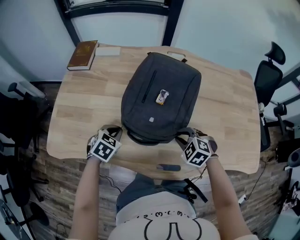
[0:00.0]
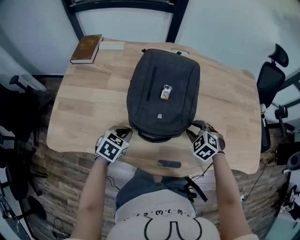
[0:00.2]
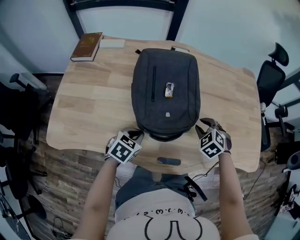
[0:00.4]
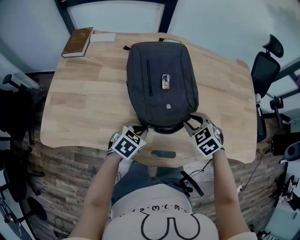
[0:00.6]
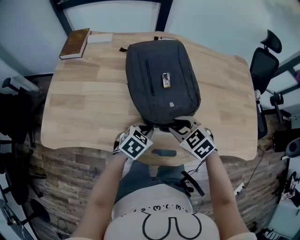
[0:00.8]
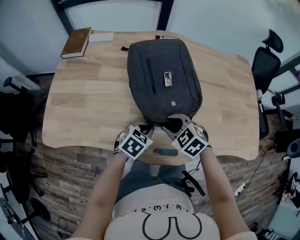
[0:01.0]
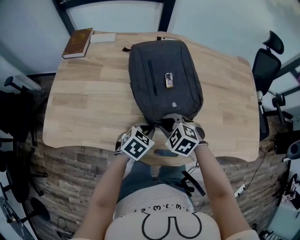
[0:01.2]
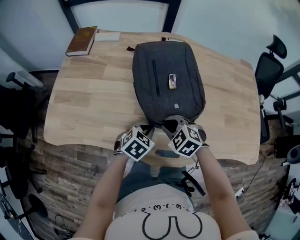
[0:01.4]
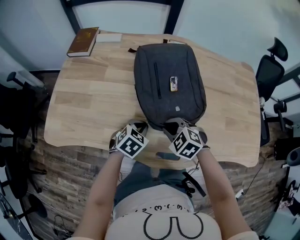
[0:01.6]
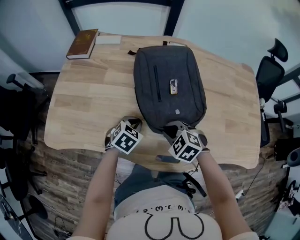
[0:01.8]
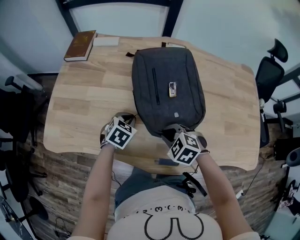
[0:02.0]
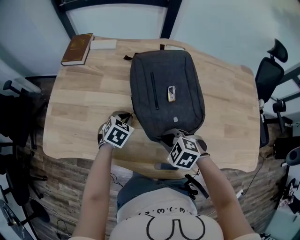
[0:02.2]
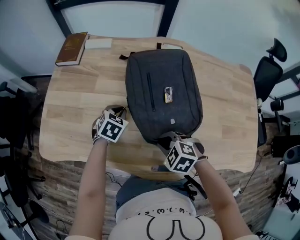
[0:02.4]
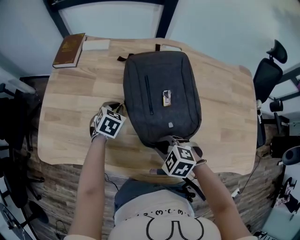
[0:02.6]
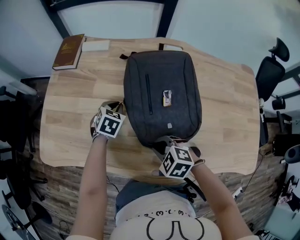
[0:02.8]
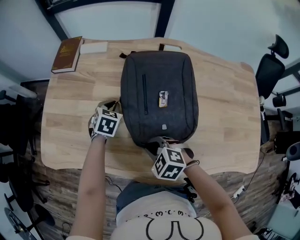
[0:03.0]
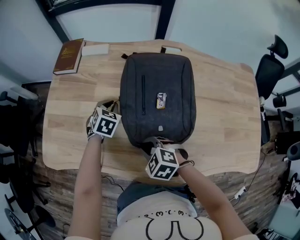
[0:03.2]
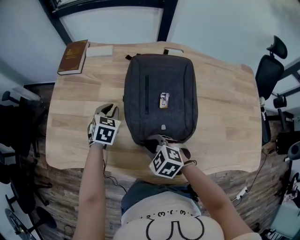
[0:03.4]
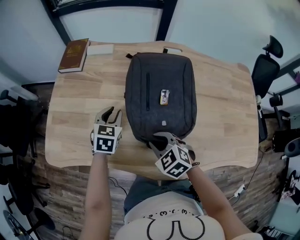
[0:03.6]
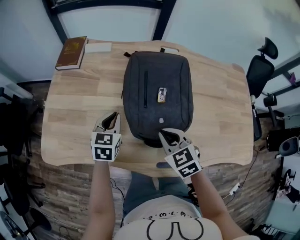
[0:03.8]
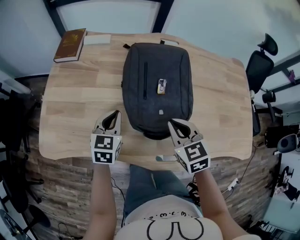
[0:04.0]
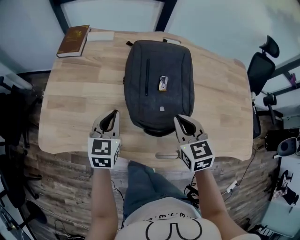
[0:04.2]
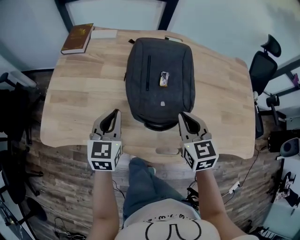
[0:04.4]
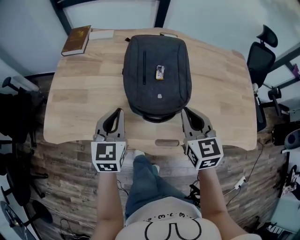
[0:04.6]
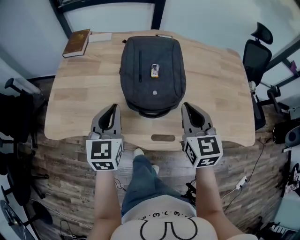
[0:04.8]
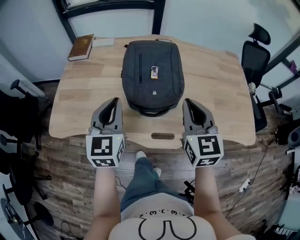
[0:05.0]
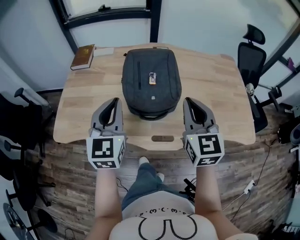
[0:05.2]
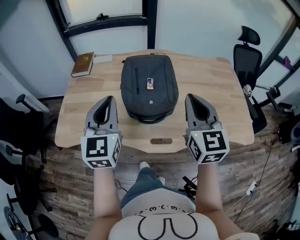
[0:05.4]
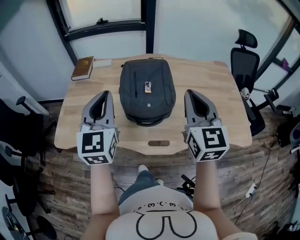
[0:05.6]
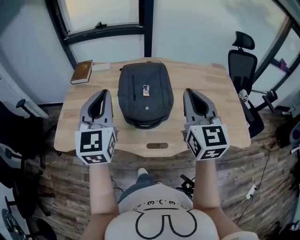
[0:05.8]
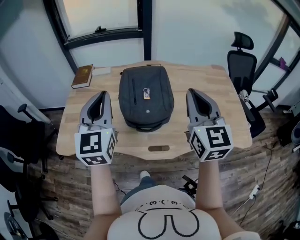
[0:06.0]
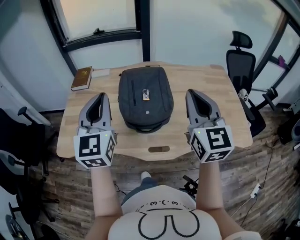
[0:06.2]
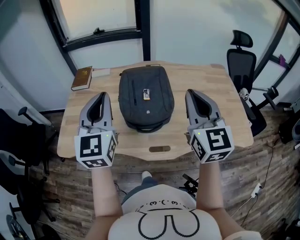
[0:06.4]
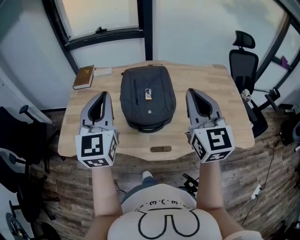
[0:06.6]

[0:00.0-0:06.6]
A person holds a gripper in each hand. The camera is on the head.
0.0 to 1.6 s: The right gripper is displaced to the left by some 5 cm, while the left gripper shifts roughly 10 cm to the right.
1.6 to 3.2 s: The left gripper heads forward, covering approximately 20 cm; the right gripper goes roughly 10 cm to the left.
3.2 to 5.0 s: The left gripper is displaced upward and backward by about 35 cm, and angles its fingers upward, by roughly 40 degrees, while the right gripper heads upward and to the right, covering roughly 30 cm, and angles its fingers upward, by some 50 degrees.
5.0 to 6.6 s: Both grippers travel together upward, some 15 cm.

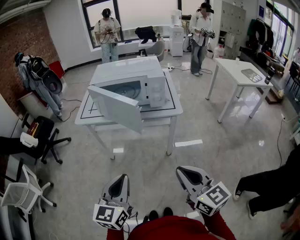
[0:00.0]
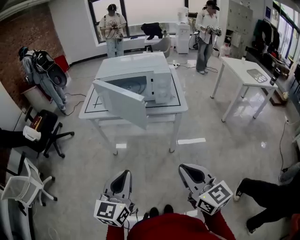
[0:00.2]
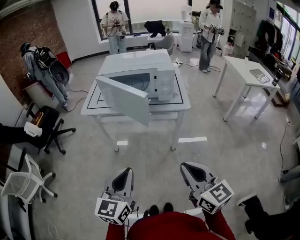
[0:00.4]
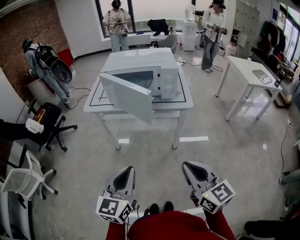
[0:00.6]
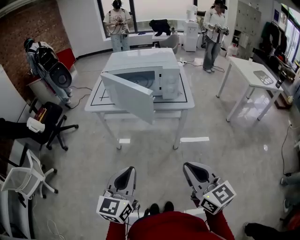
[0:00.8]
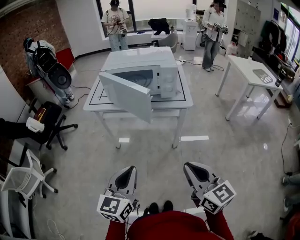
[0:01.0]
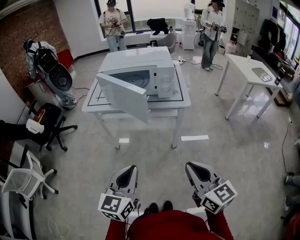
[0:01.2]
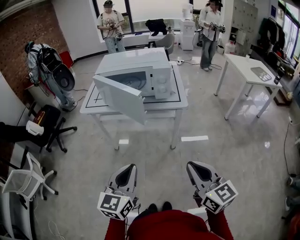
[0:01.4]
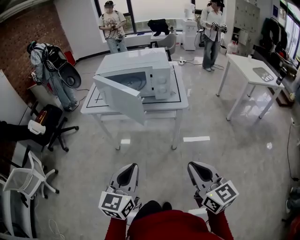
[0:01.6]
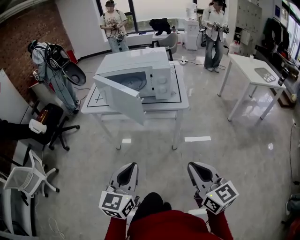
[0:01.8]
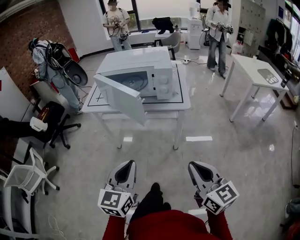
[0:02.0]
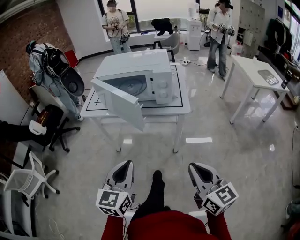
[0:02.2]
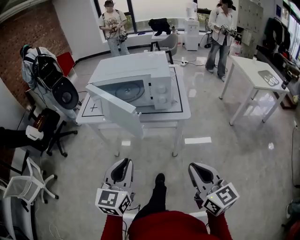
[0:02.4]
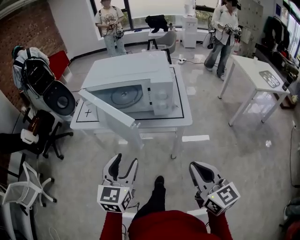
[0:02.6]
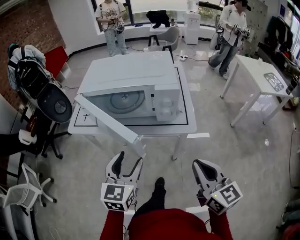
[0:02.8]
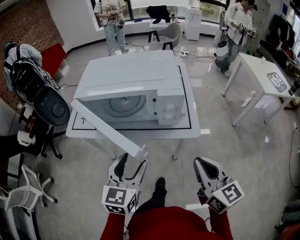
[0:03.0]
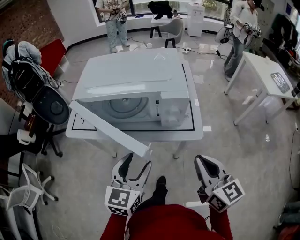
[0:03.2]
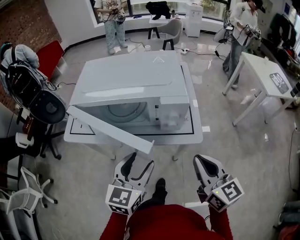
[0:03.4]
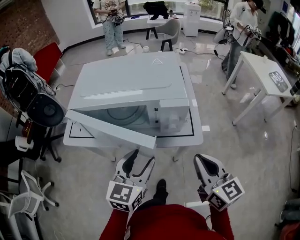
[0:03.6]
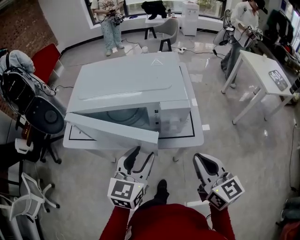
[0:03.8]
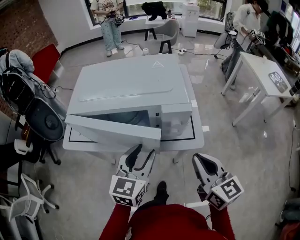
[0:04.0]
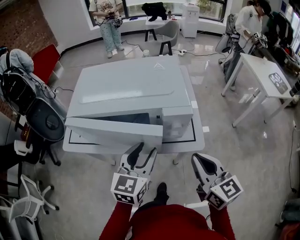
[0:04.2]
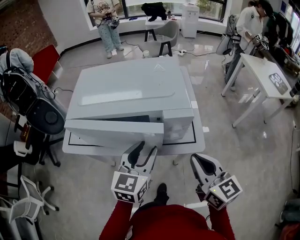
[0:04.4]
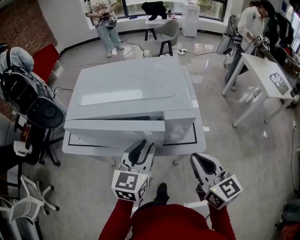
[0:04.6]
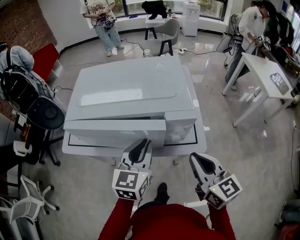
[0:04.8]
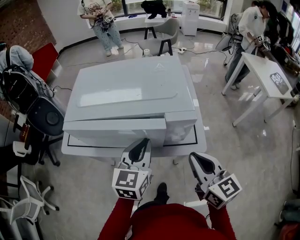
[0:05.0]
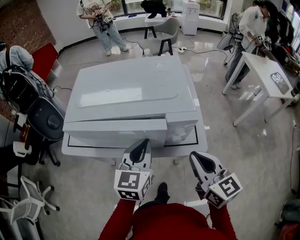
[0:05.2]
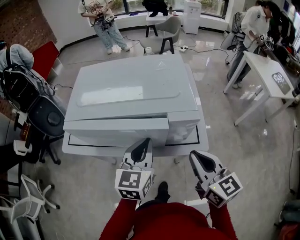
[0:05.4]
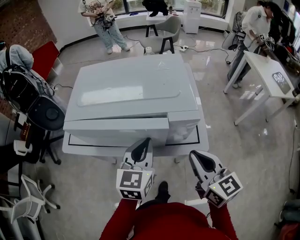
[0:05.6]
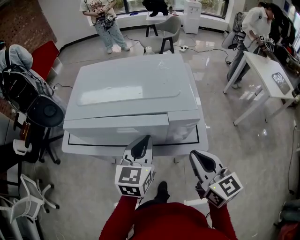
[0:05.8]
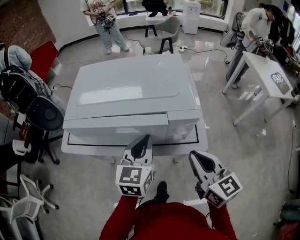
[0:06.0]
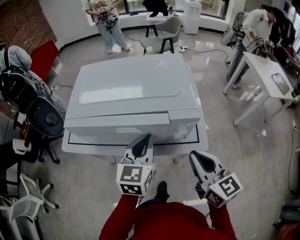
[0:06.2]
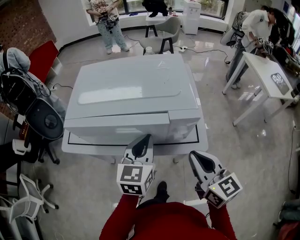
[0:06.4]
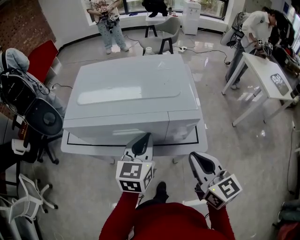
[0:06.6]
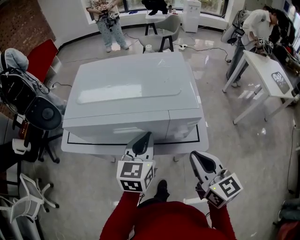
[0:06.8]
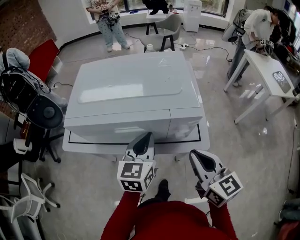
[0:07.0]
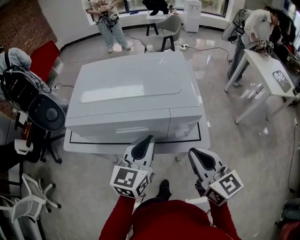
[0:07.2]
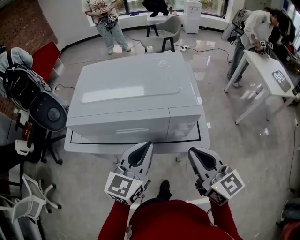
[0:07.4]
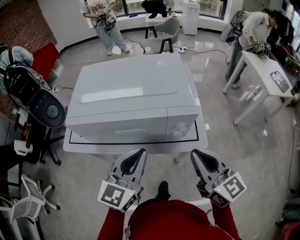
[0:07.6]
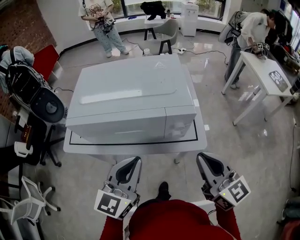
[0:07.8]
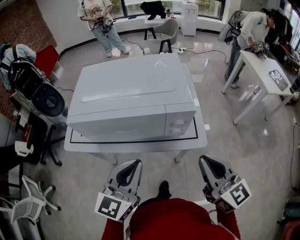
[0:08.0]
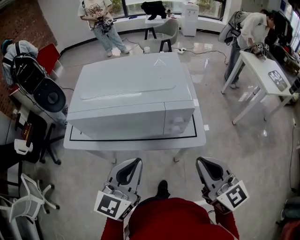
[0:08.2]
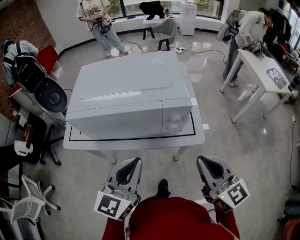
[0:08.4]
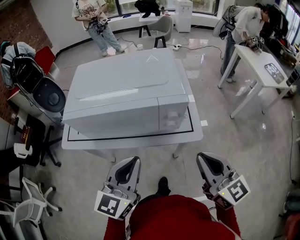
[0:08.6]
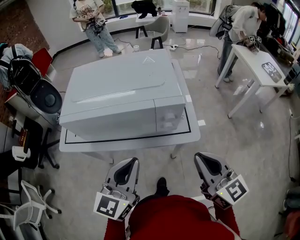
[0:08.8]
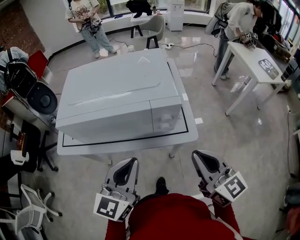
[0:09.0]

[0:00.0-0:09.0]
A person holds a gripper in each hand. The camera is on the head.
0.0 to 1.6 s: Both grippers move to the right, some 5 cm.
1.6 to 3.0 s: Both grippers travel together forward, approximately 25 cm. The left gripper opens its fingers.
3.0 to 4.4 s: Both grippers travel together forward, some 10 cm.
4.4 to 6.0 s: The left gripper closes.
6.0 to 7.6 s: The left gripper heads backward, covering roughly 5 cm.
7.6 to 9.0 s: There are only small adjustments of the grippers.

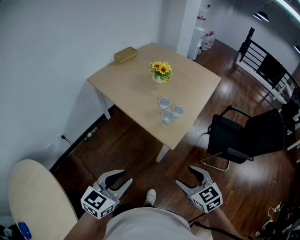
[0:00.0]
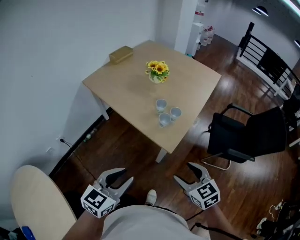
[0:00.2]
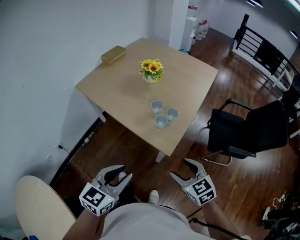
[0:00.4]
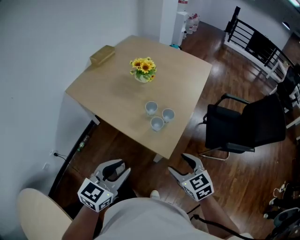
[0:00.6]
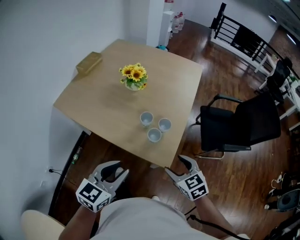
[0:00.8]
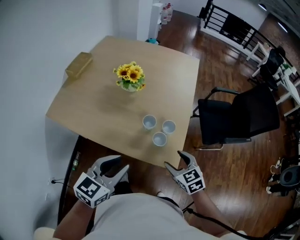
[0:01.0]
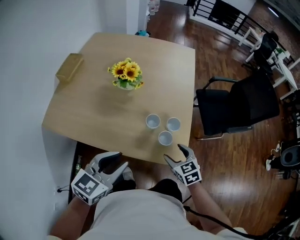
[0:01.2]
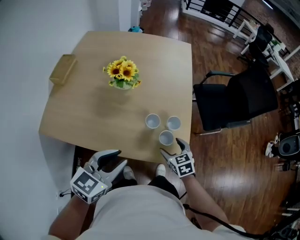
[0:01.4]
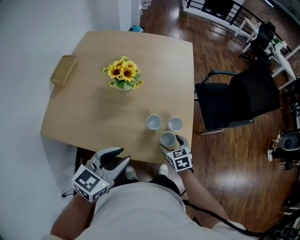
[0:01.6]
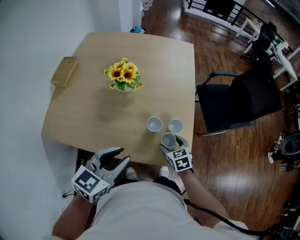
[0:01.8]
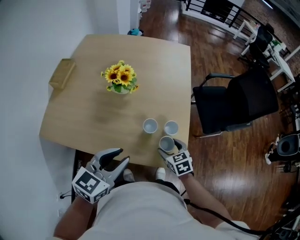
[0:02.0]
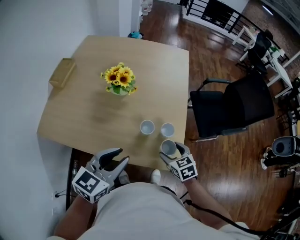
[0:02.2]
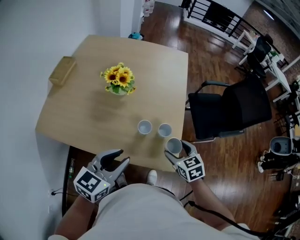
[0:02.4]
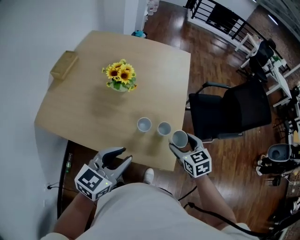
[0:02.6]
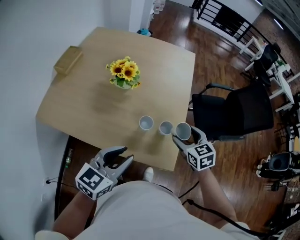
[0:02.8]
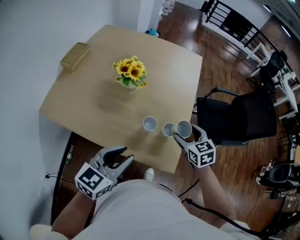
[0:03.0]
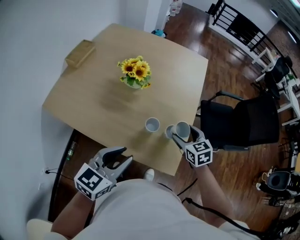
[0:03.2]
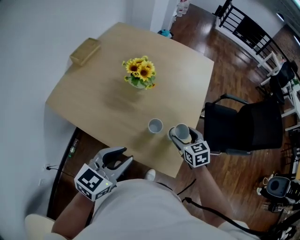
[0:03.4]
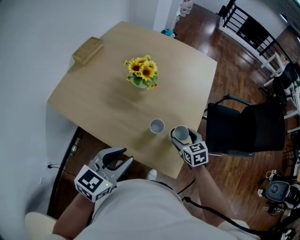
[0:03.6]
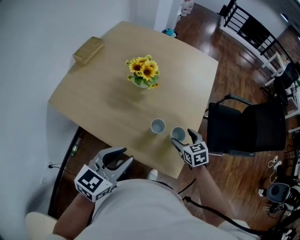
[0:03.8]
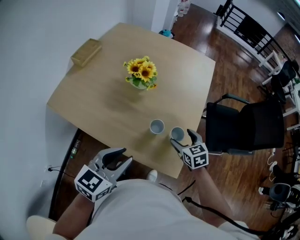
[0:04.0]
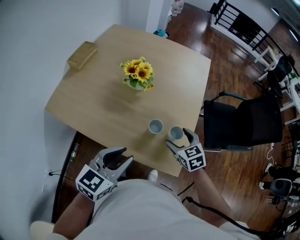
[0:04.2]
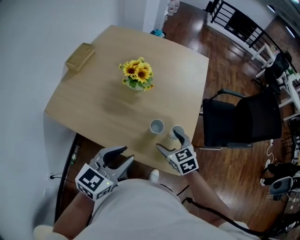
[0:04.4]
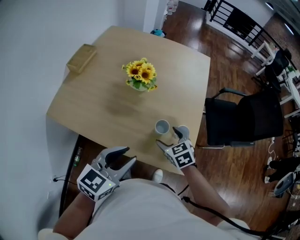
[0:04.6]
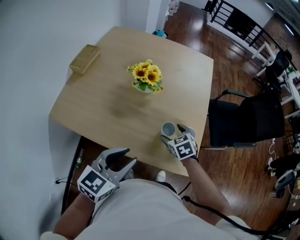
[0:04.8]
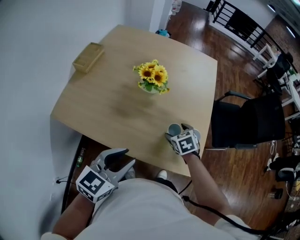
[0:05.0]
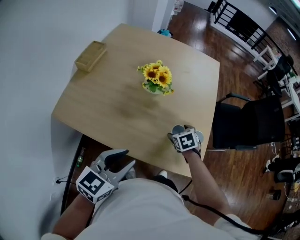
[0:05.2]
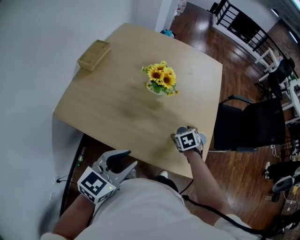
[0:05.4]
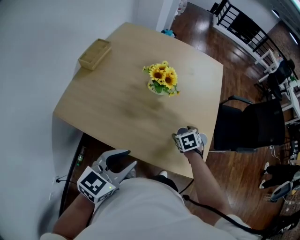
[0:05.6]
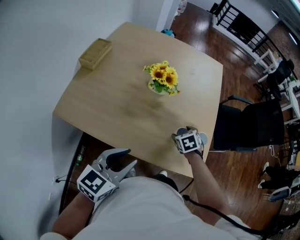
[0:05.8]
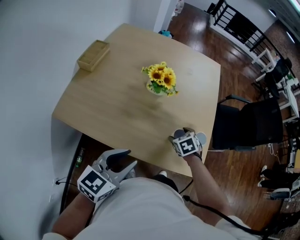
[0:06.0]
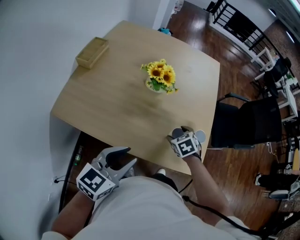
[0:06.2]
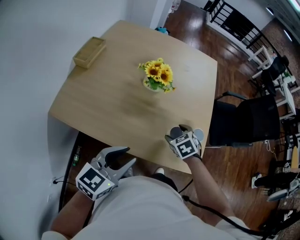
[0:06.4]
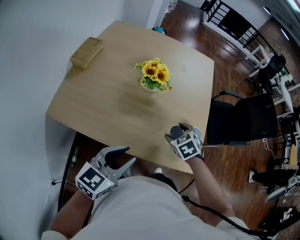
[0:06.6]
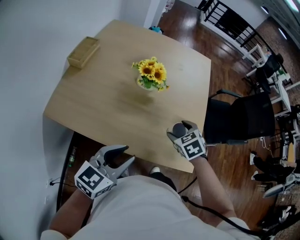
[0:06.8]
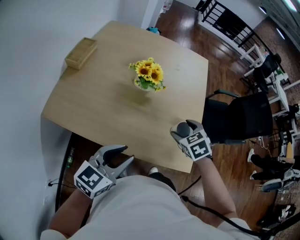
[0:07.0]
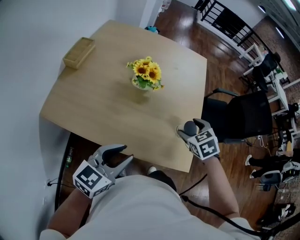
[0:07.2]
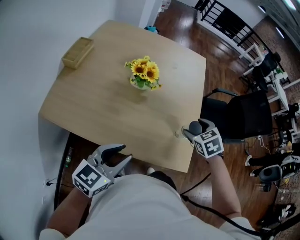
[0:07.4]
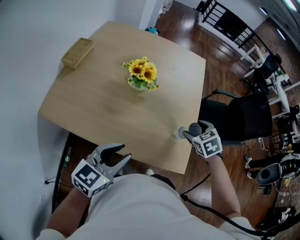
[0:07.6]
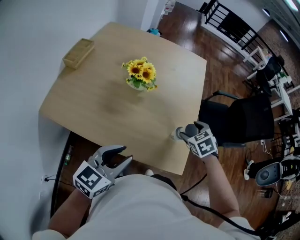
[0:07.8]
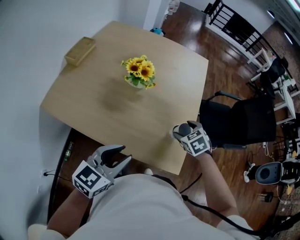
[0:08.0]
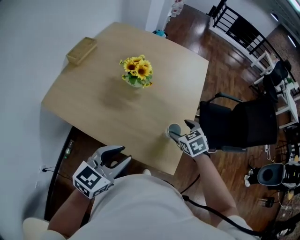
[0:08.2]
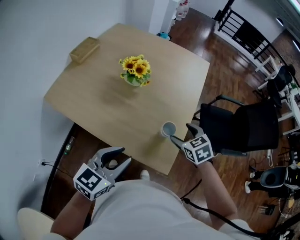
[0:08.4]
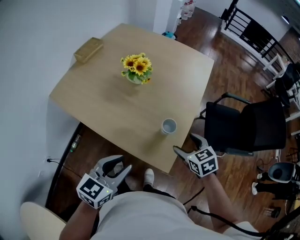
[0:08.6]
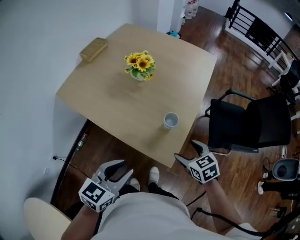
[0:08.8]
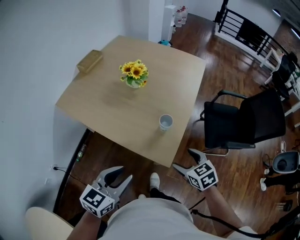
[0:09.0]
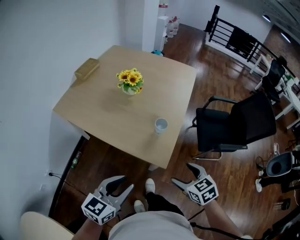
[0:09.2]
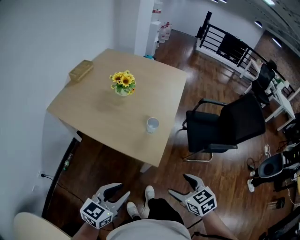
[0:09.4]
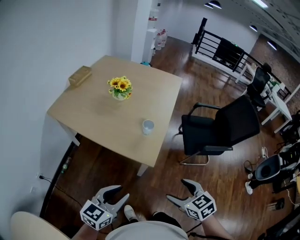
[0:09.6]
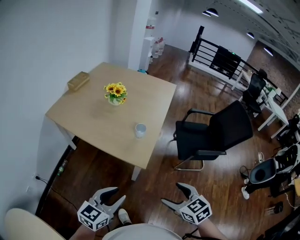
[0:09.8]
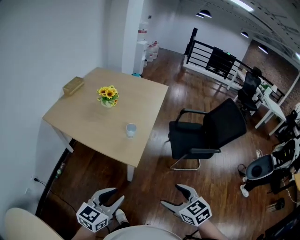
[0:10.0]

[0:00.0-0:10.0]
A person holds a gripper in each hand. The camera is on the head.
0.0 to 1.4 s: The left gripper changes place by approximately 40 cm, and turns by about 30 degrees, while the right gripper moves some 40 cm, and swivels roughly 40 degrees.
1.4 to 2.8 s: The left gripper heads to the right, covering approximately 5 cm. Meanwhile the right gripper moves upward, forward and to the right, roughly 15 cm.
2.8 to 4.2 s: The right gripper heads to the left and downward, covering about 10 cm.
4.2 to 5.8 s: The right gripper moves to the left and downward, roughly 15 cm, and swivels about 30 degrees, while the left gripper heads to the left, covering approximately 15 cm.
5.8 to 7.2 s: The right gripper goes approximately 15 cm upward.
7.2 to 8.6 s: The right gripper changes place by some 15 cm, and swivels roughly 20 degrees. The left gripper ends up approximately 20 cm from where it was.
8.6 to 10.0 s: The left gripper shifts approximately 30 cm backward and to the right; the right gripper is displaced backward by about 40 cm.
